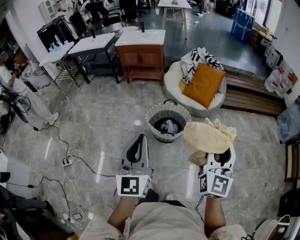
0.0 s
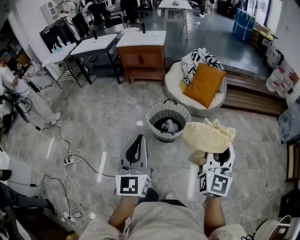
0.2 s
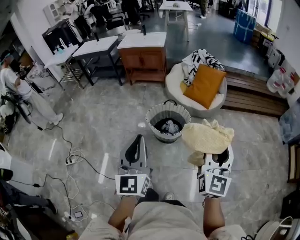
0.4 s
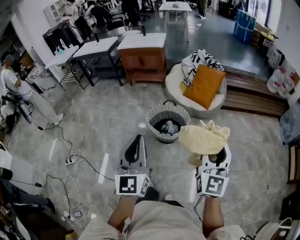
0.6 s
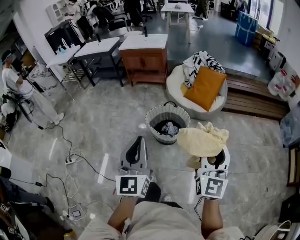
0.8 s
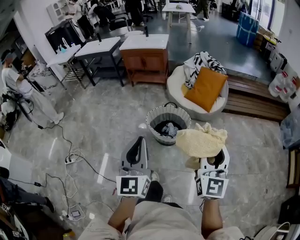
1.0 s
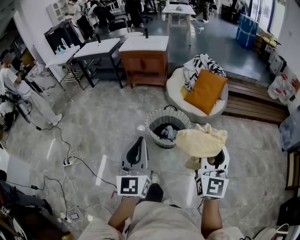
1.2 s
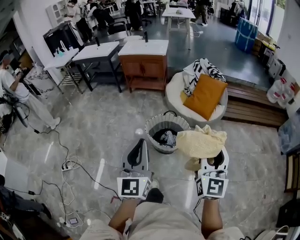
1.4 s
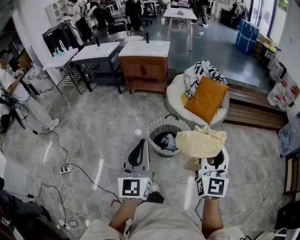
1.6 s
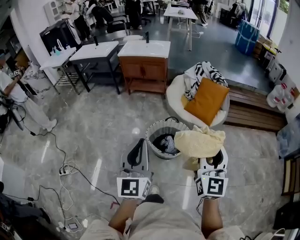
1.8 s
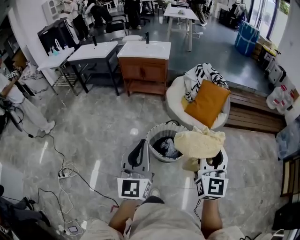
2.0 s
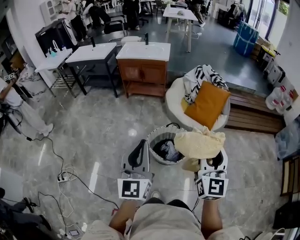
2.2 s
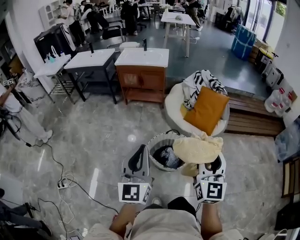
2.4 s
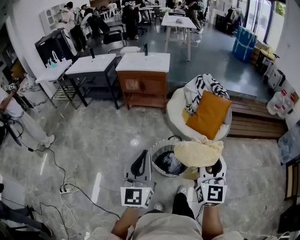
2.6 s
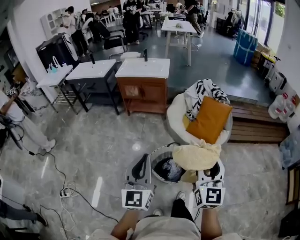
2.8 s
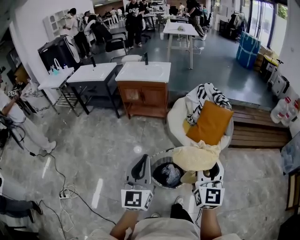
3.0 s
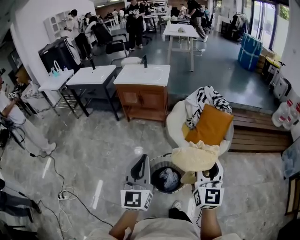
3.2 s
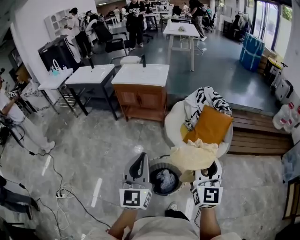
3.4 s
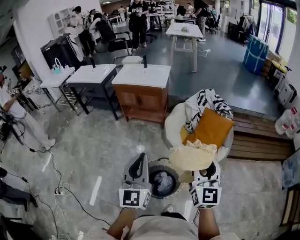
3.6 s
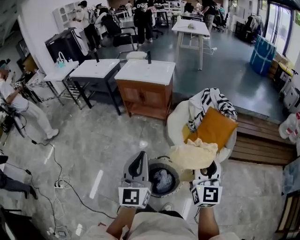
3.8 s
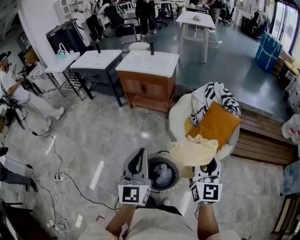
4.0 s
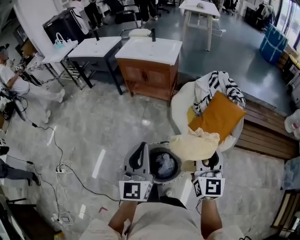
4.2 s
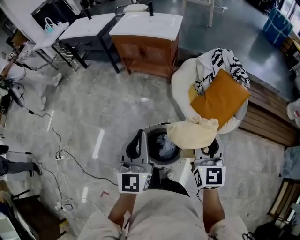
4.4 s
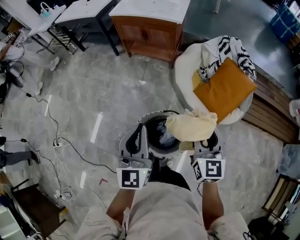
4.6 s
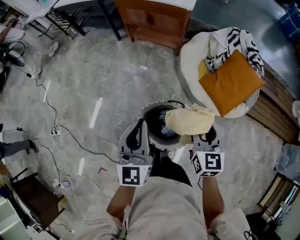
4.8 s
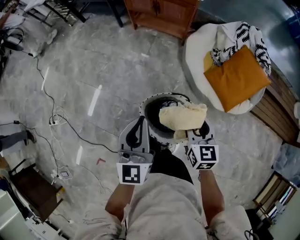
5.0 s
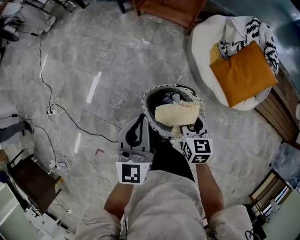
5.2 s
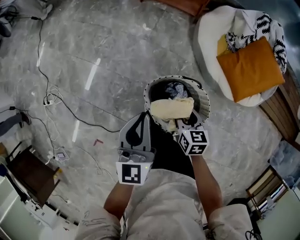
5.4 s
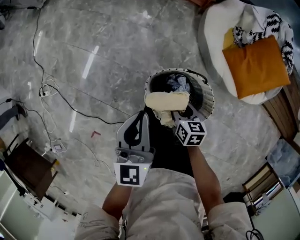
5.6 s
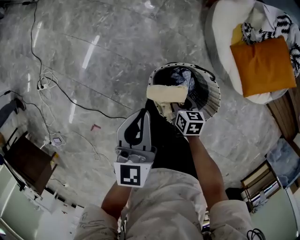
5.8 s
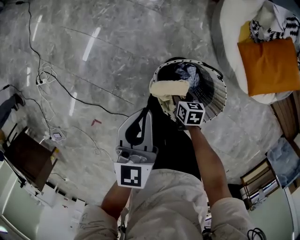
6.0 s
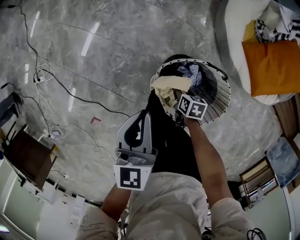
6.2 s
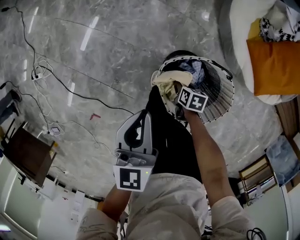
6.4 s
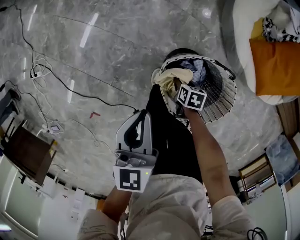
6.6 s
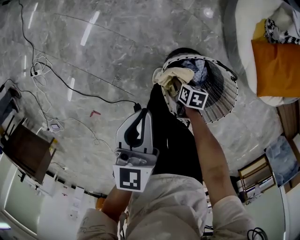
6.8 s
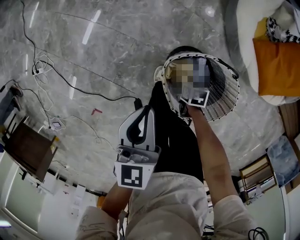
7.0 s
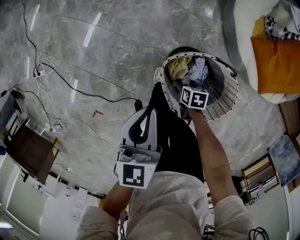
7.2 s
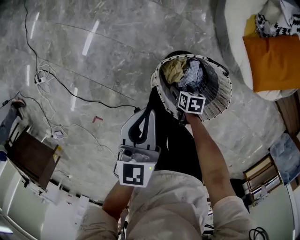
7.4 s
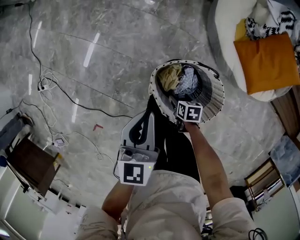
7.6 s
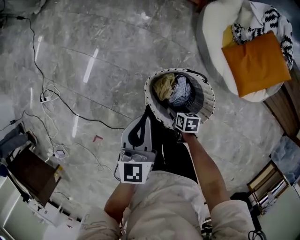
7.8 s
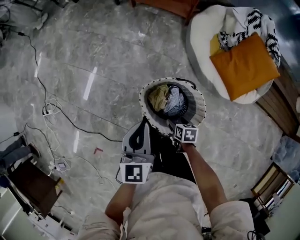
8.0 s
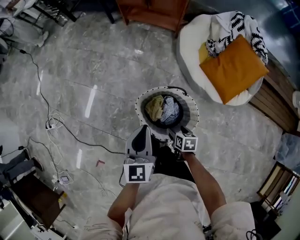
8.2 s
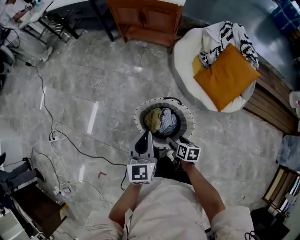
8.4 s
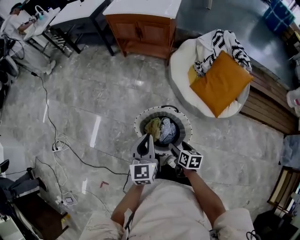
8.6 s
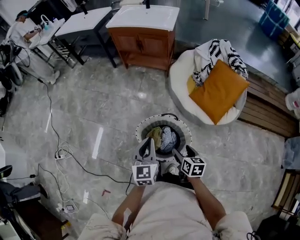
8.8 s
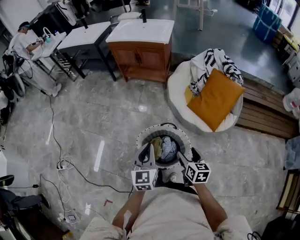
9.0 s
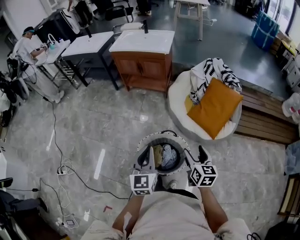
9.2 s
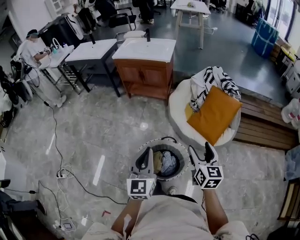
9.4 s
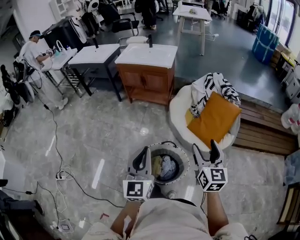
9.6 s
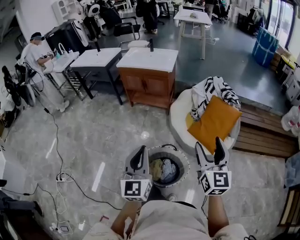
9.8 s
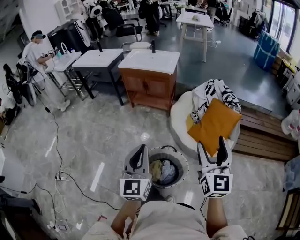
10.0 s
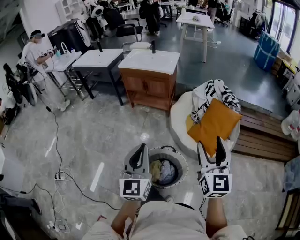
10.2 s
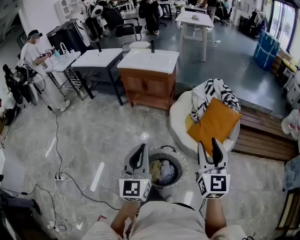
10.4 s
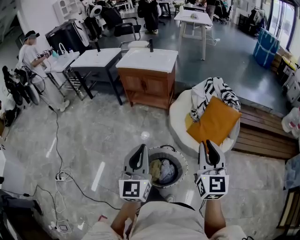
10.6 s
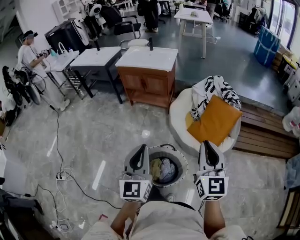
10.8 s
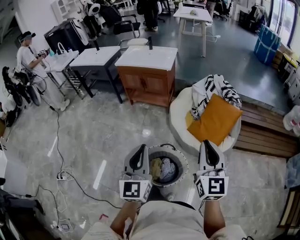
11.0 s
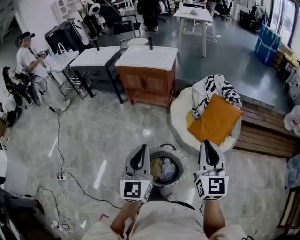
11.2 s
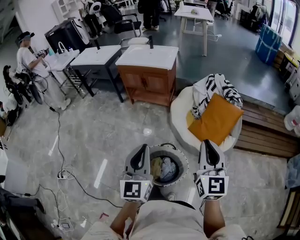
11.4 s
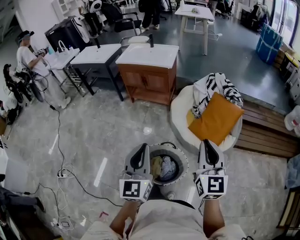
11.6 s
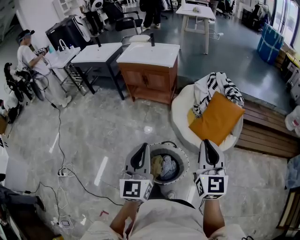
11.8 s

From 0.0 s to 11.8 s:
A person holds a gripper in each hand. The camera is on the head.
From 1.4 s to 3.0 s: Both grippers move forward, roughly 25 cm.
From 3.0 s to 4.4 s: The right gripper heads forward and downward, covering about 25 cm, while the left gripper shifts some 20 cm forward, to the right and downward.
From 4.4 s to 6.0 s: The left gripper goes roughly 30 cm downward, and changes its angle by approximately 30 degrees. The right gripper heads downward, covering approximately 60 cm, and points its fingers some 50 degrees further downward.
From 6.0 s to 7.4 s: The right gripper shifts approximately 10 cm downward, and opens.
From 7.4 s to 8.8 s: The right gripper shifts some 35 cm upward, and rotates roughly 40 degrees; the left gripper shifts by some 25 cm.
From 8.8 s to 10.4 s: The left gripper travels upward by some 20 cm, and rotates roughly 20 degrees. The right gripper is displaced upward by some 35 cm, tips its fingers upward by about 40 degrees, and closes.
From 10.4 s to 11.8 s: The right gripper closes its fingers.

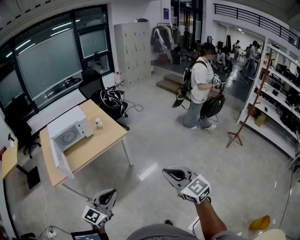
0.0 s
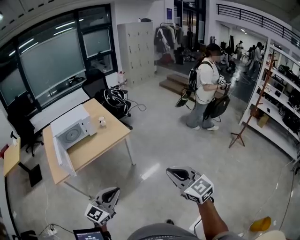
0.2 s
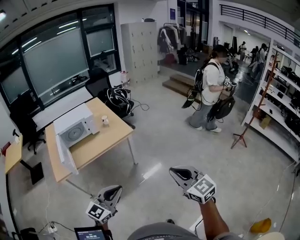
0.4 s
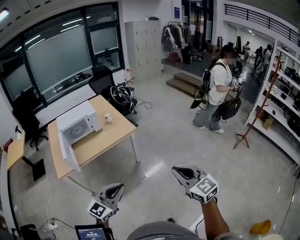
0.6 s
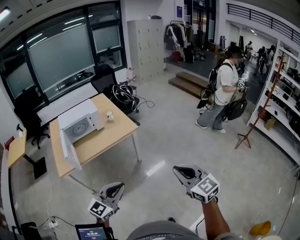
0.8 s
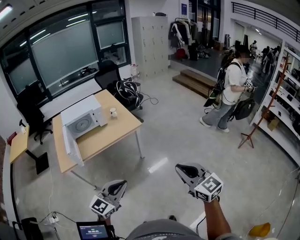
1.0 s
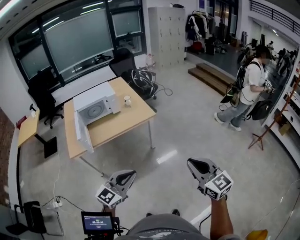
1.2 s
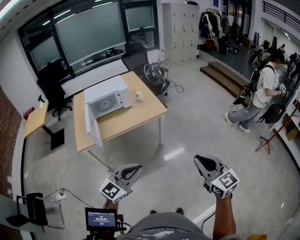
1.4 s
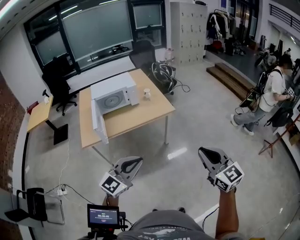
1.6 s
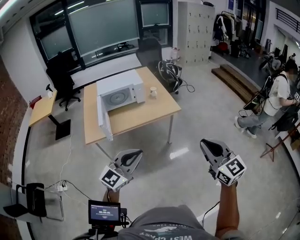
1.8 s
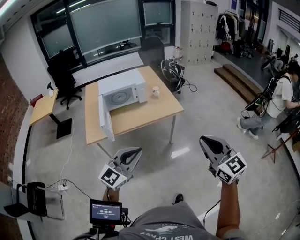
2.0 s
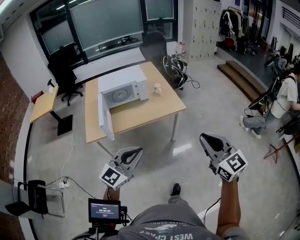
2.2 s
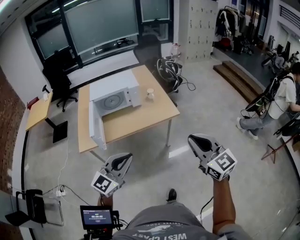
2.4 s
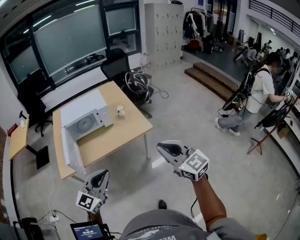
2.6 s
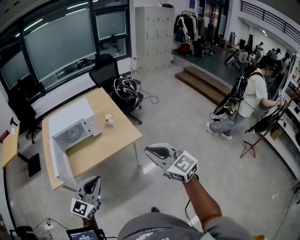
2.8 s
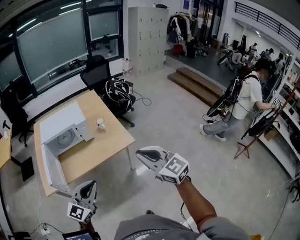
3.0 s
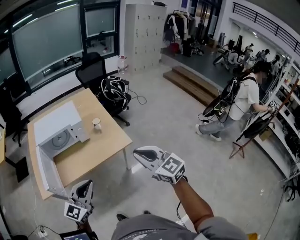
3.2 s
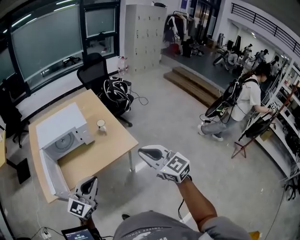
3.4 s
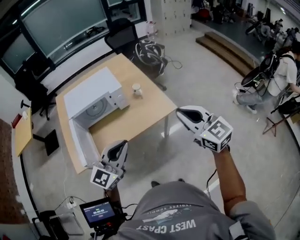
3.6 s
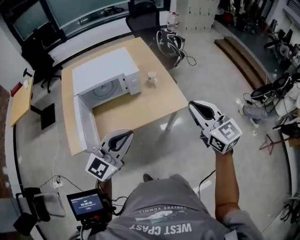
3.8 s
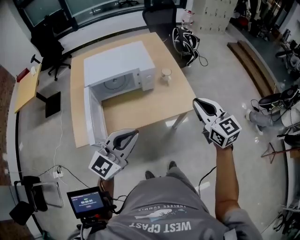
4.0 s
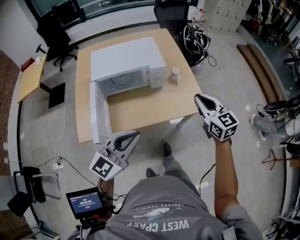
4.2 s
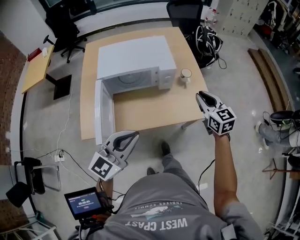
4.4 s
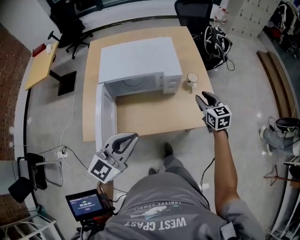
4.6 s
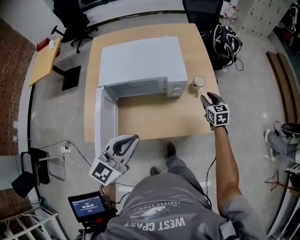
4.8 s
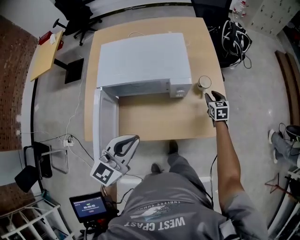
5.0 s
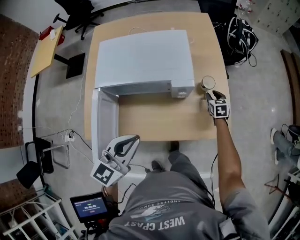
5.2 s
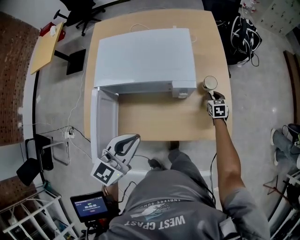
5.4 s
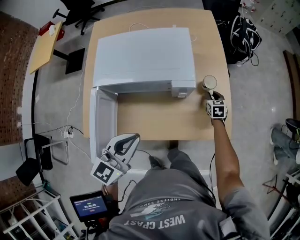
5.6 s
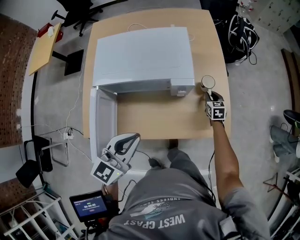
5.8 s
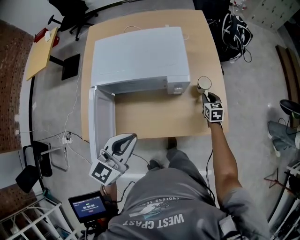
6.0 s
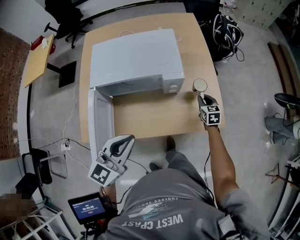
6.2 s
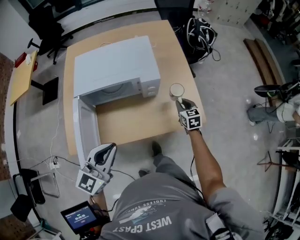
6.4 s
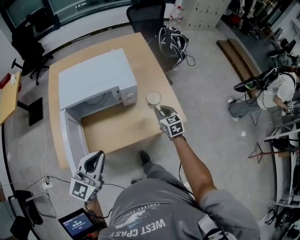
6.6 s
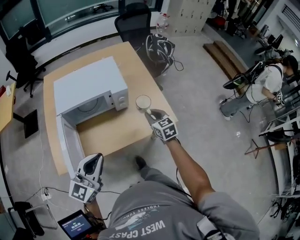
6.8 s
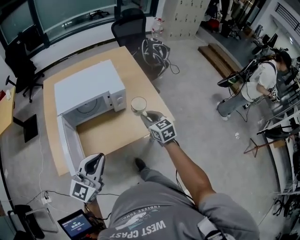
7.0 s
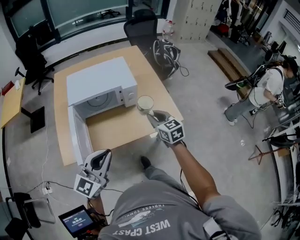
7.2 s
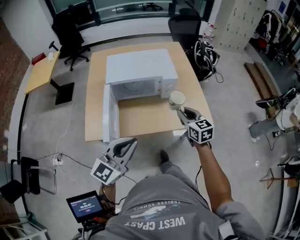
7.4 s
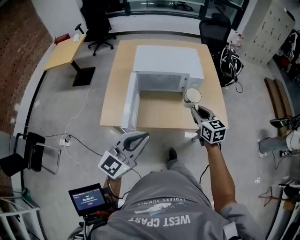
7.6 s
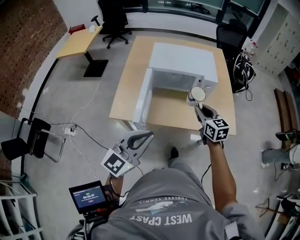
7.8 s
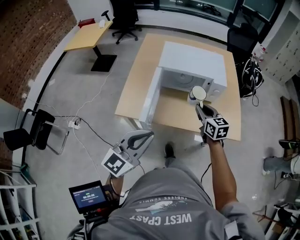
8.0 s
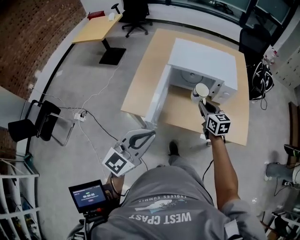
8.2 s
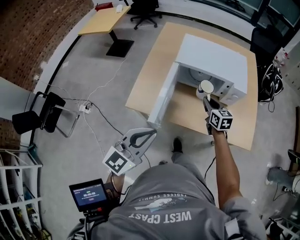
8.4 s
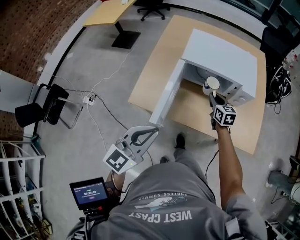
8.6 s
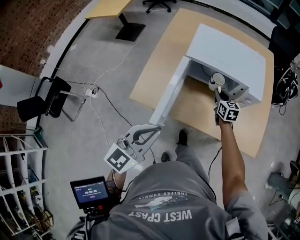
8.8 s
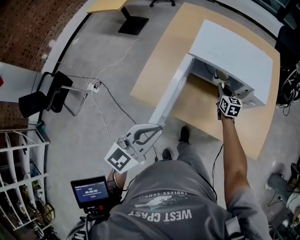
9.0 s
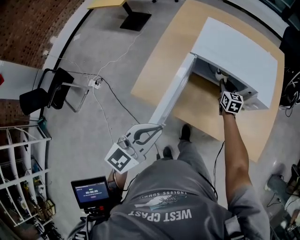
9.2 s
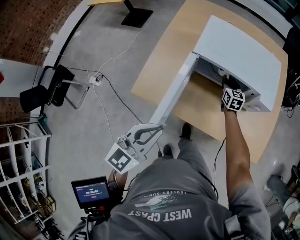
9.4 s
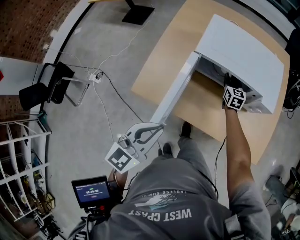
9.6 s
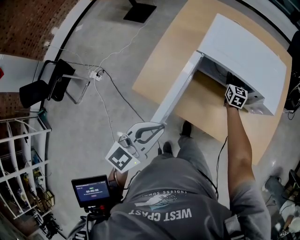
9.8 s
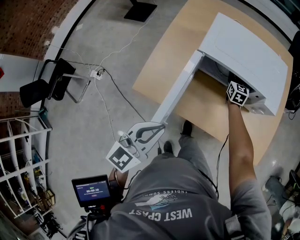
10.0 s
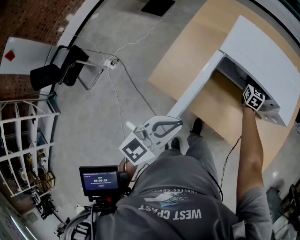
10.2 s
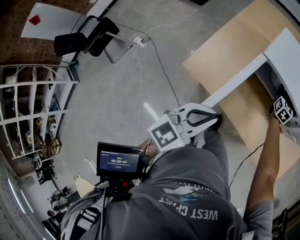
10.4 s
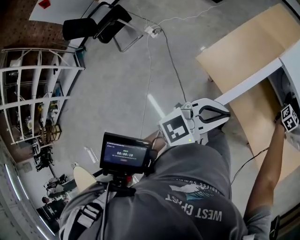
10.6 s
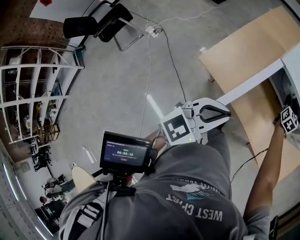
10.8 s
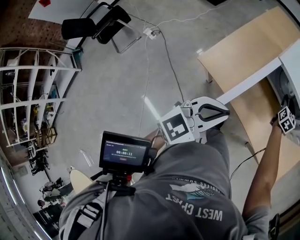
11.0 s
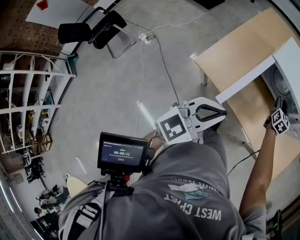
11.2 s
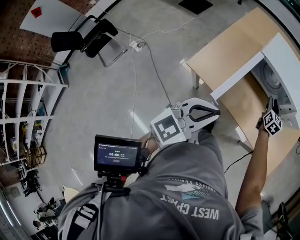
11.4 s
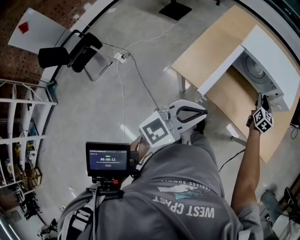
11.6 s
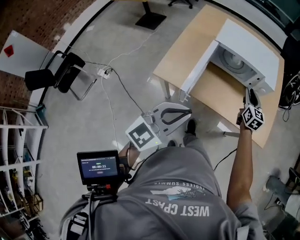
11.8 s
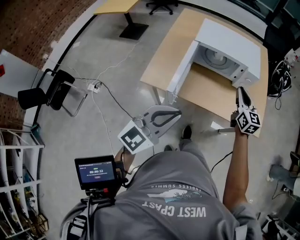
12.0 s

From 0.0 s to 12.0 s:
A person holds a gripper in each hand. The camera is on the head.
From 0.0 s to 1.6 s: Both grippers move to the left, approximately 10 cm.
From 1.6 s to 3.0 s: The two grippers go roughly 30 cm forward.
From 3.0 s to 4.4 s: The right gripper travels forward, to the left and downward by approximately 40 cm, while the left gripper shifts some 25 cm to the left and forward.
From 4.4 s to 6.0 s: The right gripper shifts some 35 cm downward and forward, and swivels approximately 20 degrees, while the left gripper shifts some 15 cm forward and downward.
From 6.0 s to 7.6 s: The left gripper travels backward by roughly 25 cm; the right gripper shifts approximately 40 cm backward, upward and to the left, and turns by roughly 30 degrees.
From 7.6 s to 9.0 s: The right gripper heads forward, downward and to the left, covering some 35 cm; the left gripper moves forward, to the left and downward, about 15 cm, and changes its angle by roughly 30 degrees.
From 9.0 s to 10.4 s: The left gripper moves roughly 5 cm. The right gripper travels forward by approximately 10 cm.
From 10.4 s to 12.0 s: The right gripper is displaced backward and upward by roughly 35 cm, while the left gripper goes some 15 cm backward, and swivels approximately 30 degrees.
